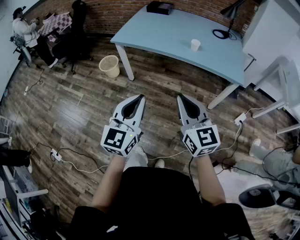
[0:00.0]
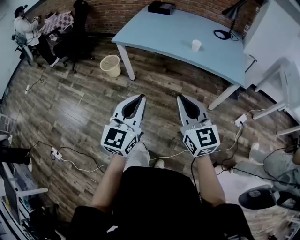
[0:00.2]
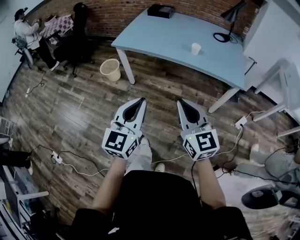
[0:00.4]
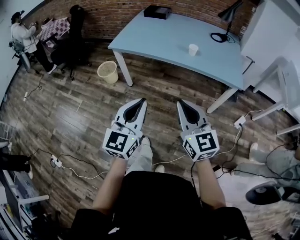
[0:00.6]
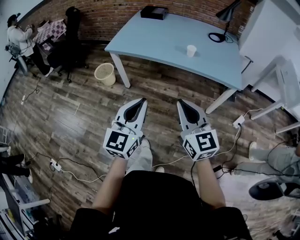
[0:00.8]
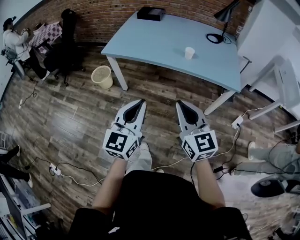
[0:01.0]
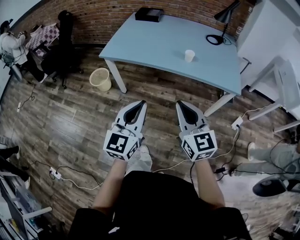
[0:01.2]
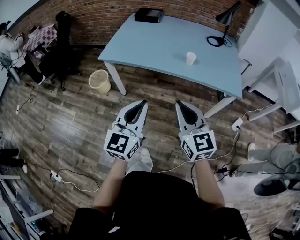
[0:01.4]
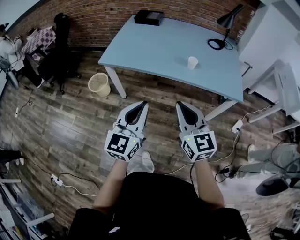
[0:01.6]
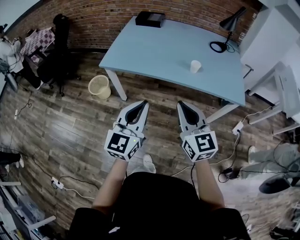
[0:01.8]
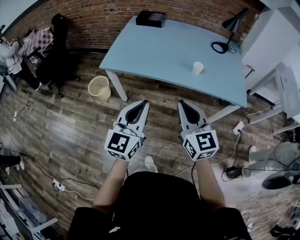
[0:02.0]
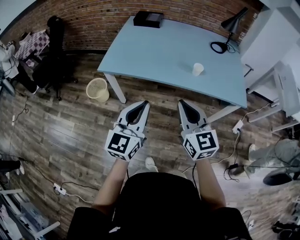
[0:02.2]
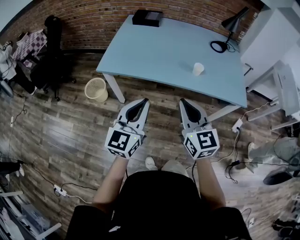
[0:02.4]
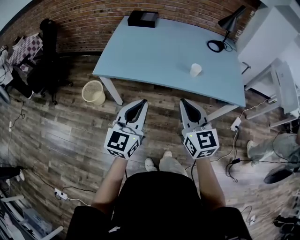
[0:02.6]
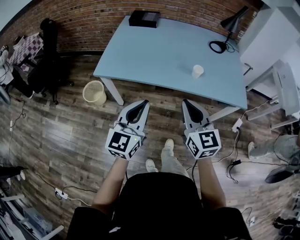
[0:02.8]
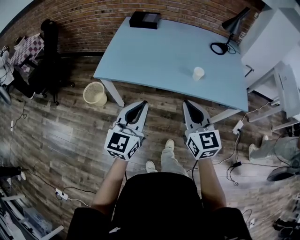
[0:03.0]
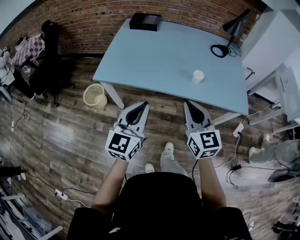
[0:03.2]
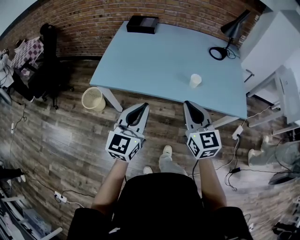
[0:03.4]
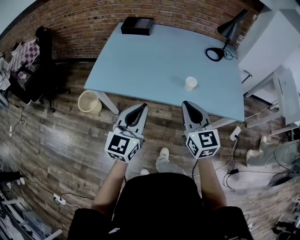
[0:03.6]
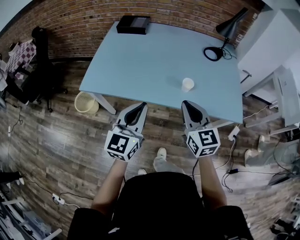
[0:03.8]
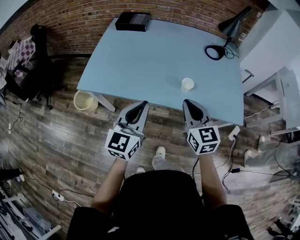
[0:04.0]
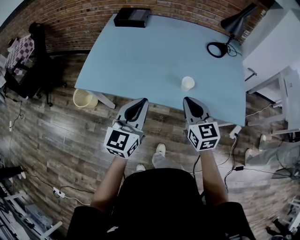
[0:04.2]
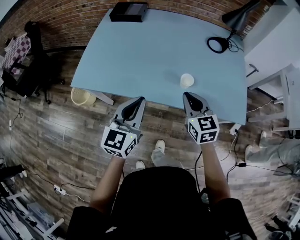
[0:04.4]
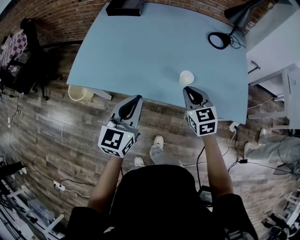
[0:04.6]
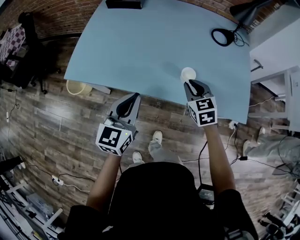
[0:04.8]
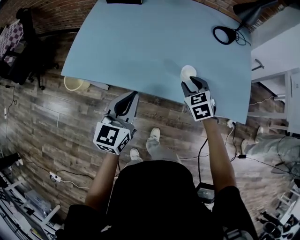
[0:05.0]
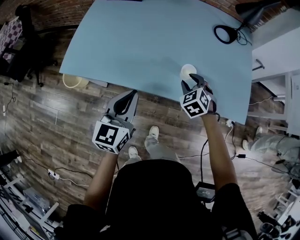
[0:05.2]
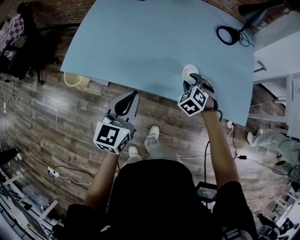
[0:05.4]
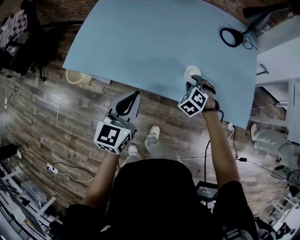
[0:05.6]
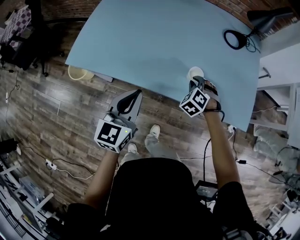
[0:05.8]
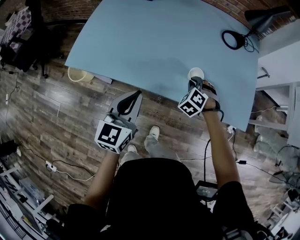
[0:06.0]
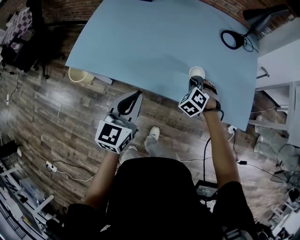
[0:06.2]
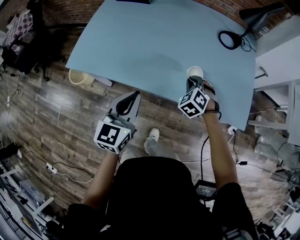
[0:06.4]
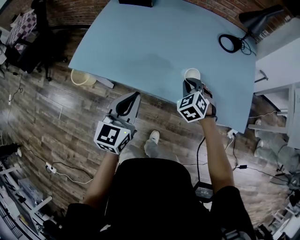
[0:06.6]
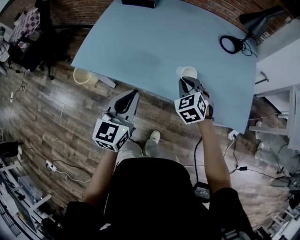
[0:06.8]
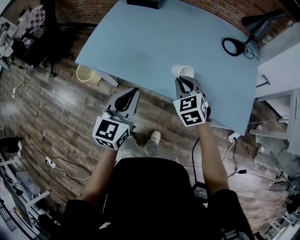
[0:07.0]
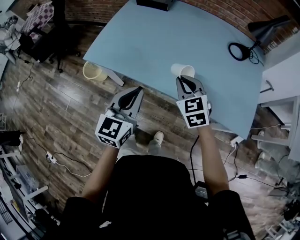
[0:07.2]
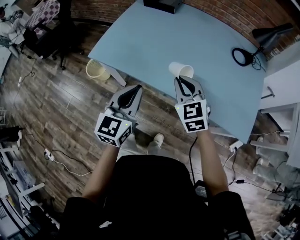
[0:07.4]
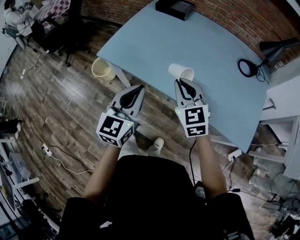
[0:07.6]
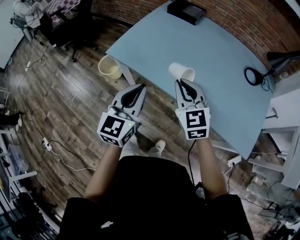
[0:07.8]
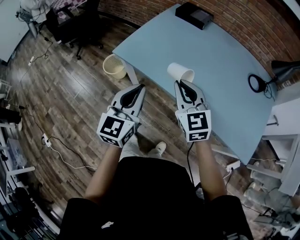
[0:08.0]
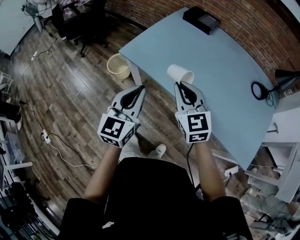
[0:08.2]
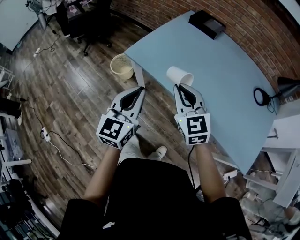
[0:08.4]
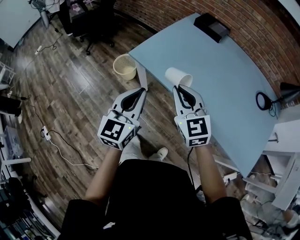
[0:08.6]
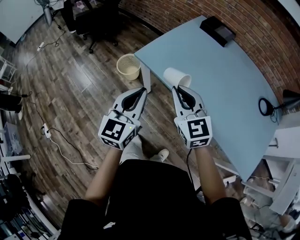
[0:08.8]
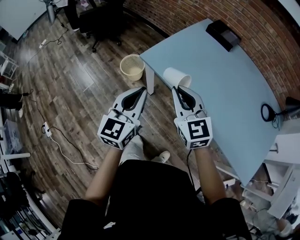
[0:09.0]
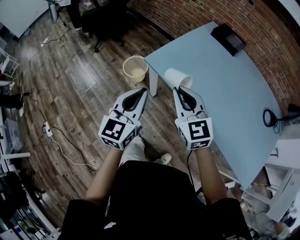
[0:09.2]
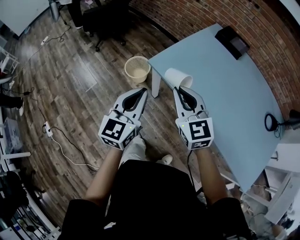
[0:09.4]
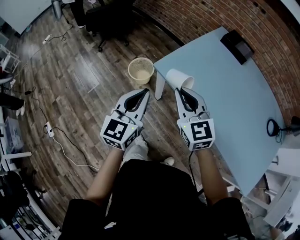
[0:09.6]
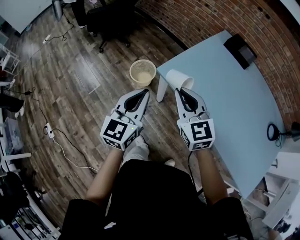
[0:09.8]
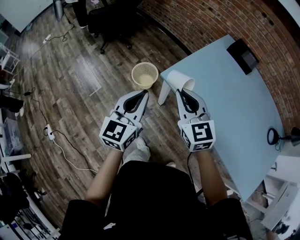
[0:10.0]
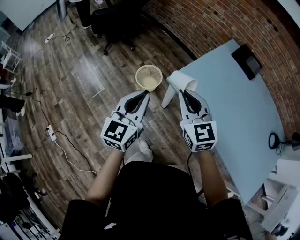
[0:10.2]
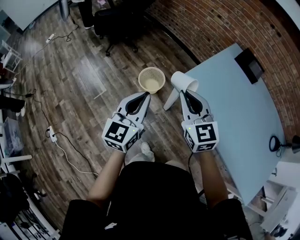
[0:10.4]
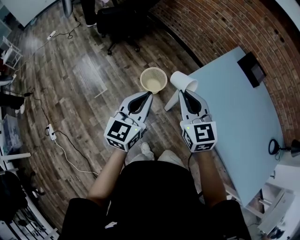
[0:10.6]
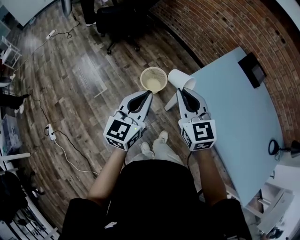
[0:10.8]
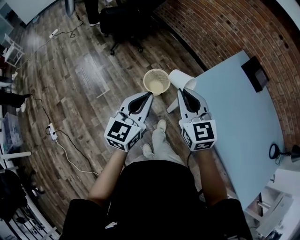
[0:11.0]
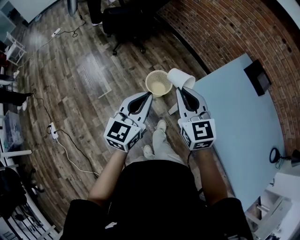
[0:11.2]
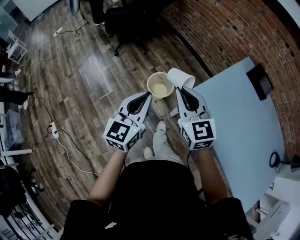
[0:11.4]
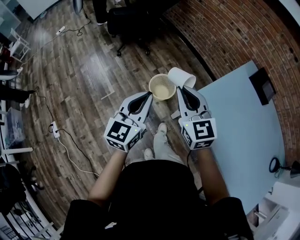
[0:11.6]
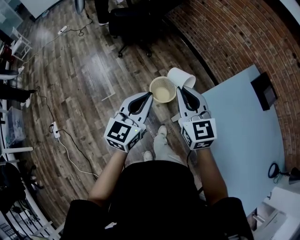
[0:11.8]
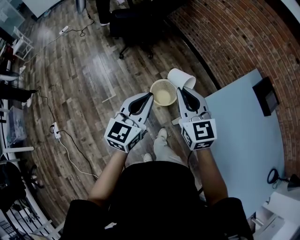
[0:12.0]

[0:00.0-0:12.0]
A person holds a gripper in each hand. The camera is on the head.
0:00.0 to 0:01.6: Both grippers travel together forward, about 20 cm.
0:01.6 to 0:03.0: The left gripper is displaced forward and to the left by about 15 cm. Meanwhile the right gripper moves forward, about 15 cm.
0:03.0 to 0:04.4: The right gripper travels forward, to the right and downward by approximately 25 cm, while the left gripper shifts approximately 20 cm forward and to the right.
0:04.4 to 0:06.0: The right gripper goes approximately 20 cm downward and forward, tilts its fingers some 30 degrees downward, and opens, then closes again; the left gripper heads downward, covering some 5 cm.
0:06.0 to 0:07.6: The left gripper goes roughly 5 cm upward. Meanwhile the right gripper heads upward, covering about 20 cm, and tilts its fingers some 30 degrees upward.
0:07.6 to 0:09.0: Both grippers travel together to the left, roughly 25 cm. The right gripper turns by about 20 degrees.
0:09.0 to 0:10.4: Both grippers move to the left and forward, approximately 25 cm.
0:10.4 to 0:12.0: The left gripper moves forward, about 15 cm. The right gripper travels forward and to the left by roughly 20 cm.

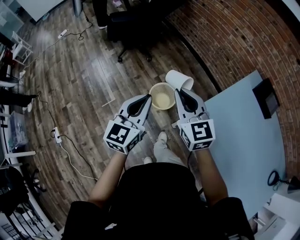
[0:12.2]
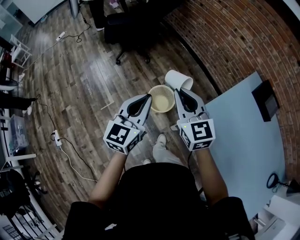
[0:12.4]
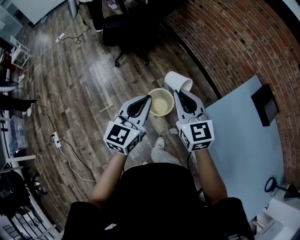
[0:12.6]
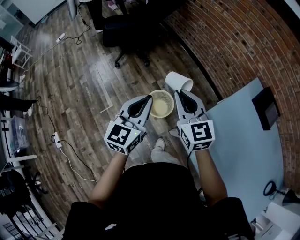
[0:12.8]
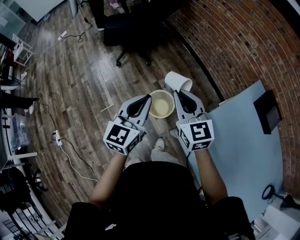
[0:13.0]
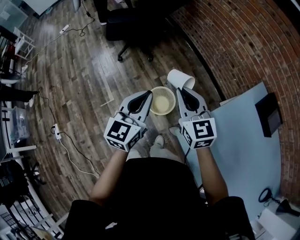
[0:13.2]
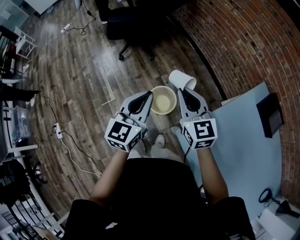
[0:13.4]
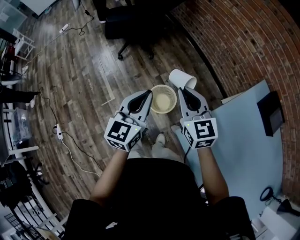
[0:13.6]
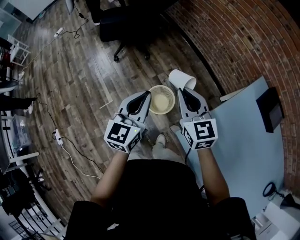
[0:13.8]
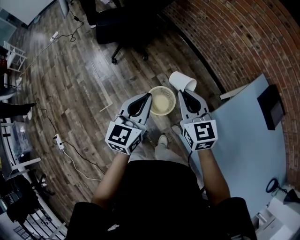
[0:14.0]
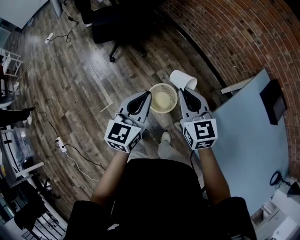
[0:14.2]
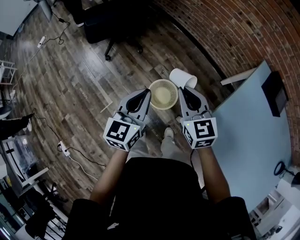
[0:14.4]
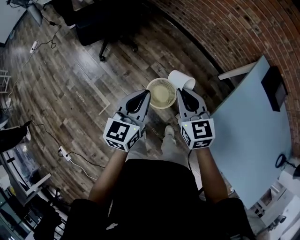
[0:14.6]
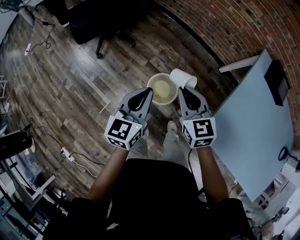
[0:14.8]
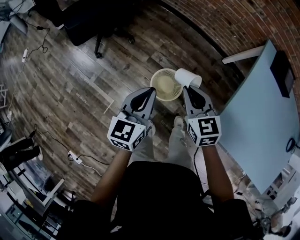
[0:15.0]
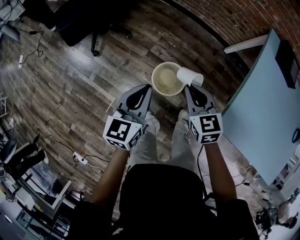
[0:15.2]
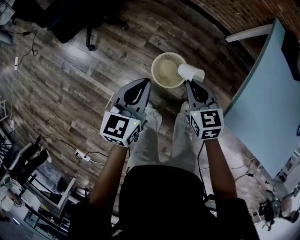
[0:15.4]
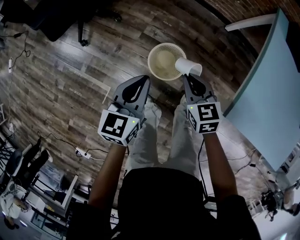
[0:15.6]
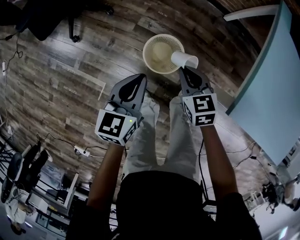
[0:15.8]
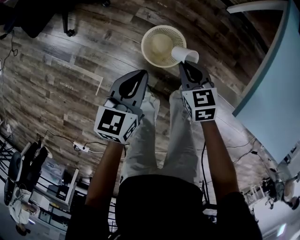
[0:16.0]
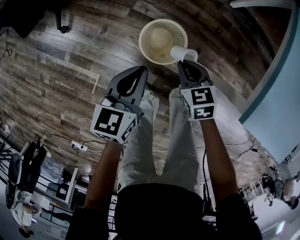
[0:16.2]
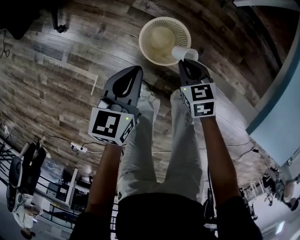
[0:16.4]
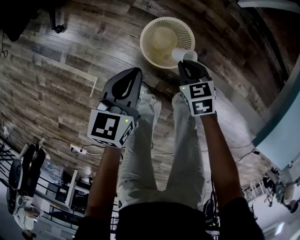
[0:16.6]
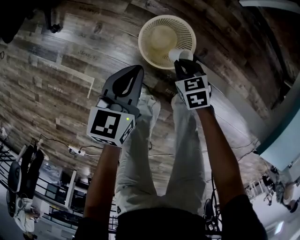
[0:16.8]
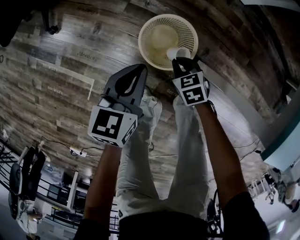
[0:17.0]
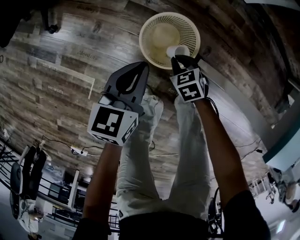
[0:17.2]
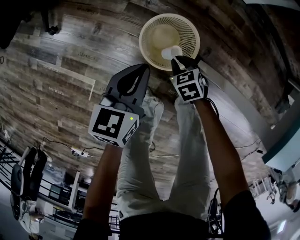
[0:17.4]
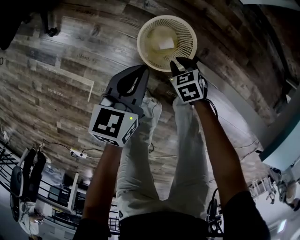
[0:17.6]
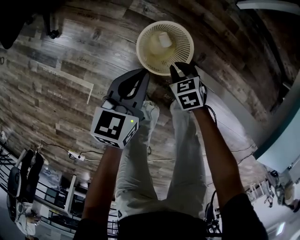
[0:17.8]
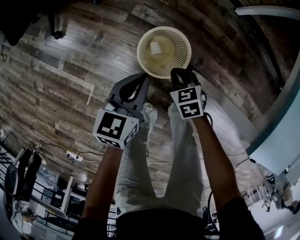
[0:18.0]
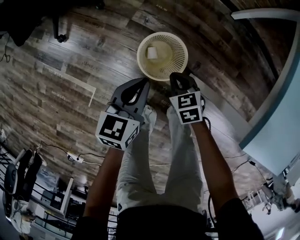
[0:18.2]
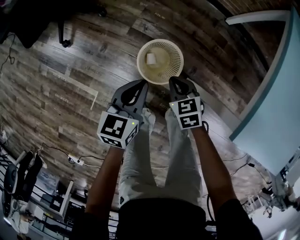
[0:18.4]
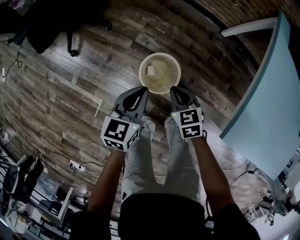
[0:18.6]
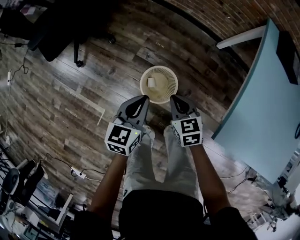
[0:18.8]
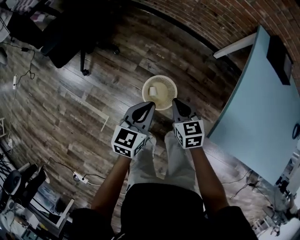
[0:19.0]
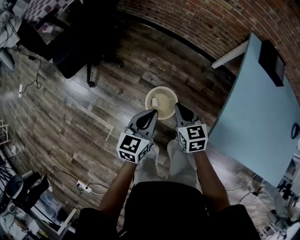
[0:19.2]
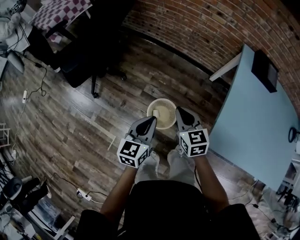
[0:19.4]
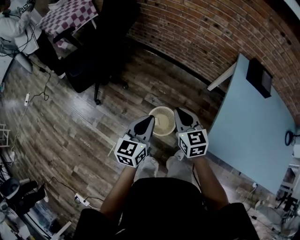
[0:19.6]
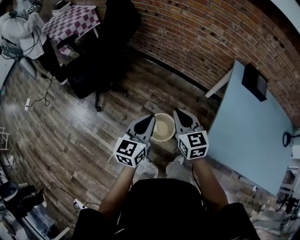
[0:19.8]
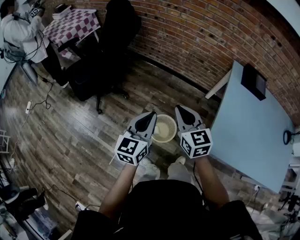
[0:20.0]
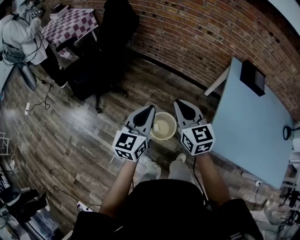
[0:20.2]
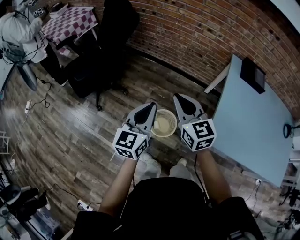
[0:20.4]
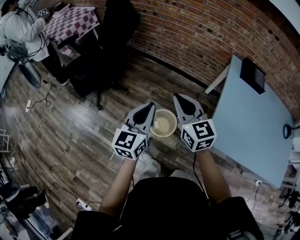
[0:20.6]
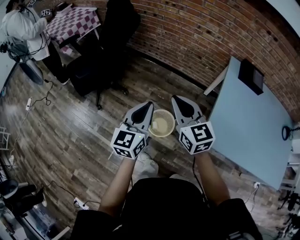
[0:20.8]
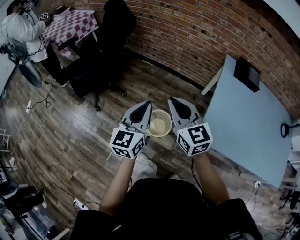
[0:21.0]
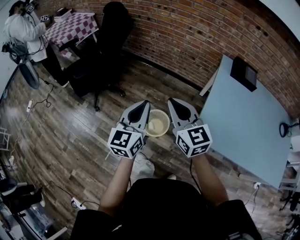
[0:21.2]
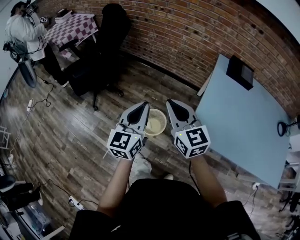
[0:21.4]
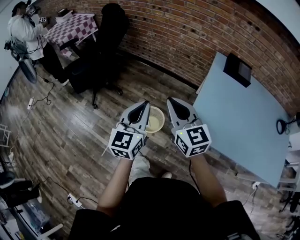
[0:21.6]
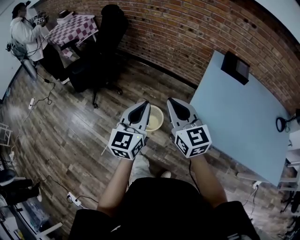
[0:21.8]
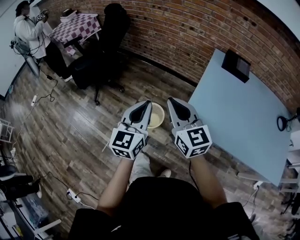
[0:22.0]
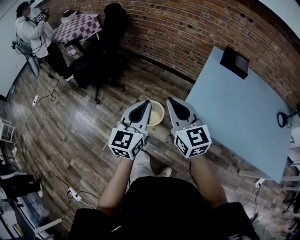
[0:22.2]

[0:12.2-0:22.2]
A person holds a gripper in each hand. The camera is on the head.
0:12.2 to 0:13.6: Both grippers move forward and to the right, some 15 cm.
0:13.6 to 0:15.0: The right gripper moves downward, to the left and forward, roughly 15 cm, and swivels about 30 degrees. The left gripper moves downward, forward and to the left, about 20 cm, and swivels roughly 30 degrees.
0:15.0 to 0:16.4: The grippers both shift downward by approximately 35 cm. The right gripper turns by roughly 30 degrees.
0:16.4 to 0:18.0: The right gripper goes about 10 cm downward; the left gripper is displaced downward by roughly 5 cm.
0:18.0 to 0:19.4: The grippers both shift upward by about 35 cm. The right gripper angles its fingers upward, by approximately 30 degrees.
0:19.4 to 0:20.8: Both grippers move upward, some 20 cm. The right gripper turns by about 20 degrees.
0:20.8 to 0:22.2: Both grippers move backward and to the right, approximately 25 cm.

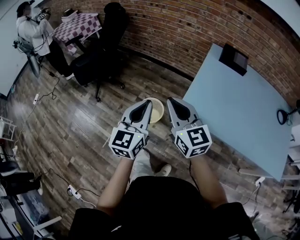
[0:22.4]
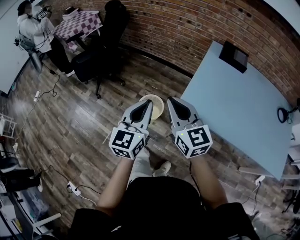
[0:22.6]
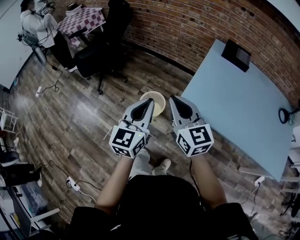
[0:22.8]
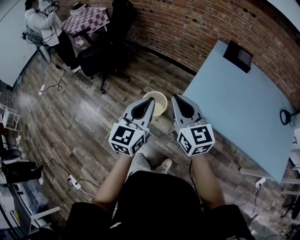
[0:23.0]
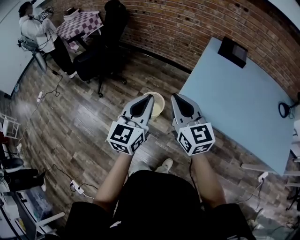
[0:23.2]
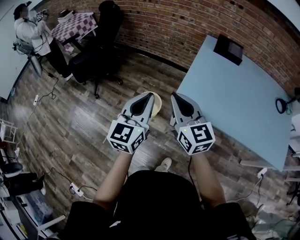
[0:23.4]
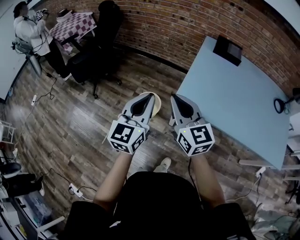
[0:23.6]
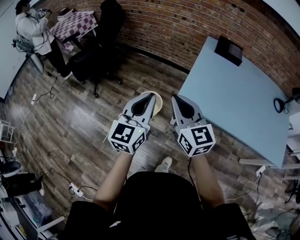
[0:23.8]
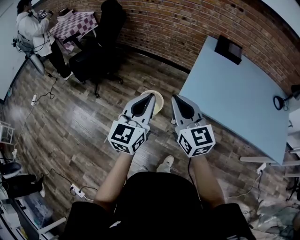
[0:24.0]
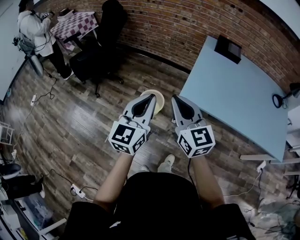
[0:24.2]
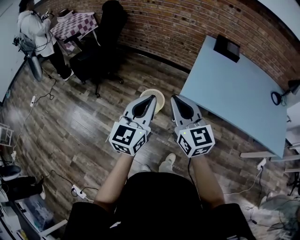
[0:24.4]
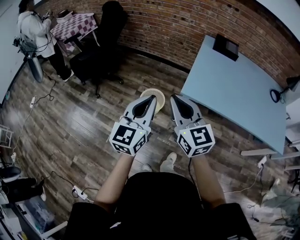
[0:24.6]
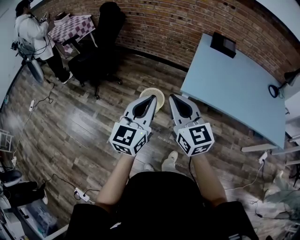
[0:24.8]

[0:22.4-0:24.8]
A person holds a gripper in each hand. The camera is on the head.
0:22.4 to 0:23.6: The right gripper moves about 5 cm.
0:23.6 to 0:24.8: Both grippers move backward and to the left, approximately 15 cm.
